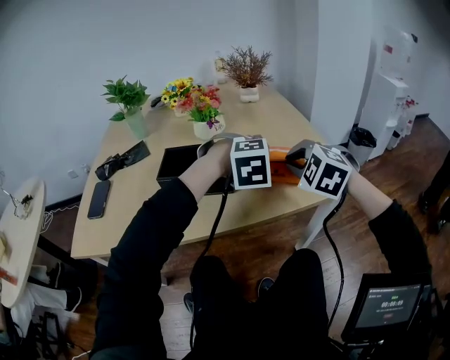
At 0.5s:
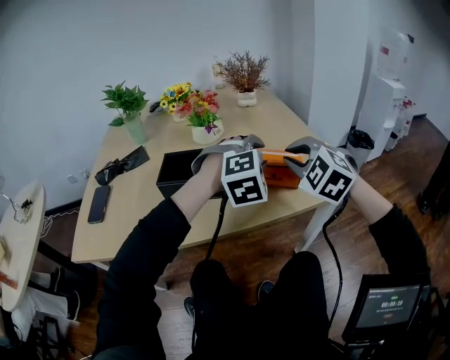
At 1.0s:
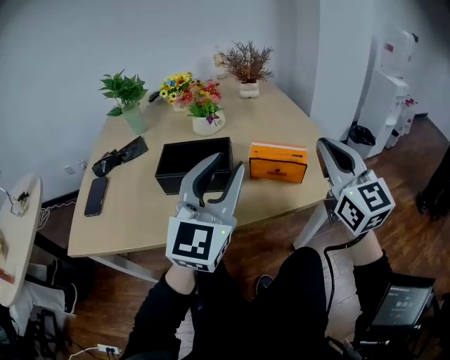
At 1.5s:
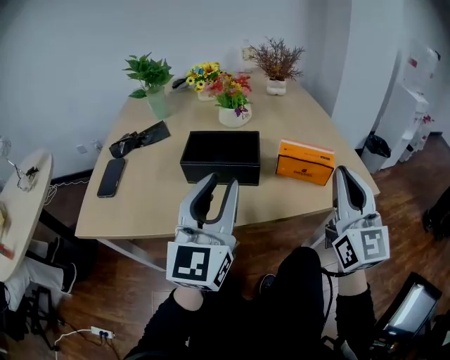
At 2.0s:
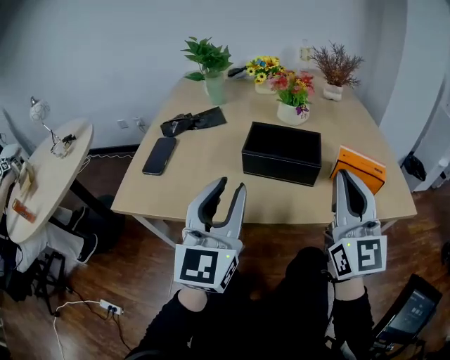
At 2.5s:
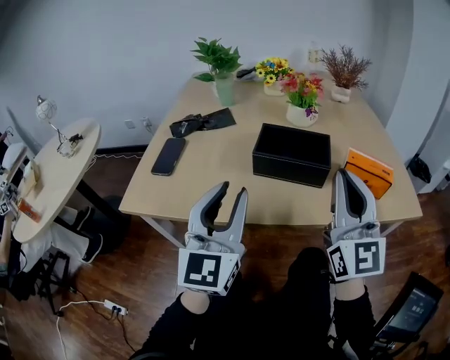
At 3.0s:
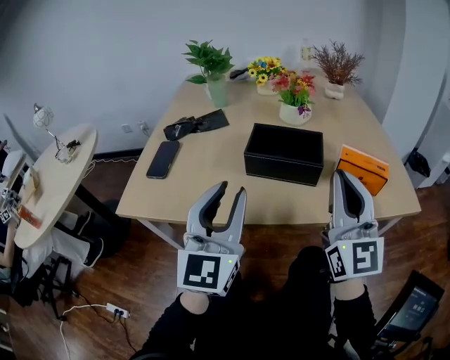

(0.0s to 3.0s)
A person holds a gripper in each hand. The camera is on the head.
0.0s - 1.5s: The right gripper moves backward and upward, about 15 cm, and tilts its fingers approximately 60 degrees upward; the left gripper goes approximately 25 cm to the left, backward and upward, and angles its fingers upward, by about 60 degrees.
1.5s - 3.0s: The grippers both shift to the left by about 15 cm.

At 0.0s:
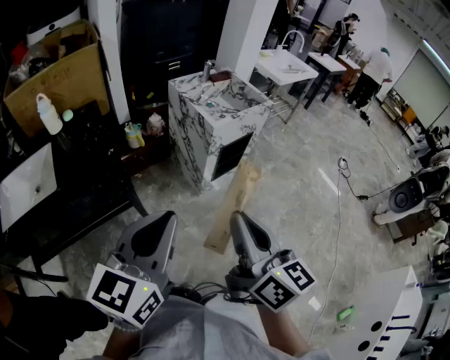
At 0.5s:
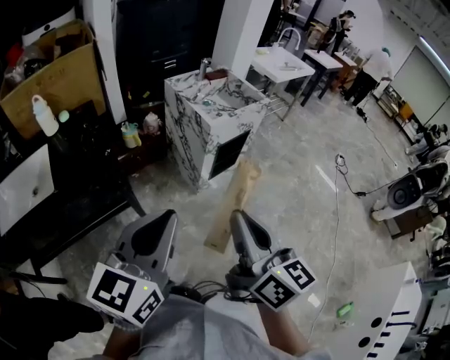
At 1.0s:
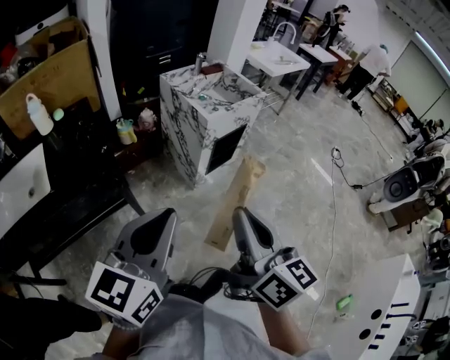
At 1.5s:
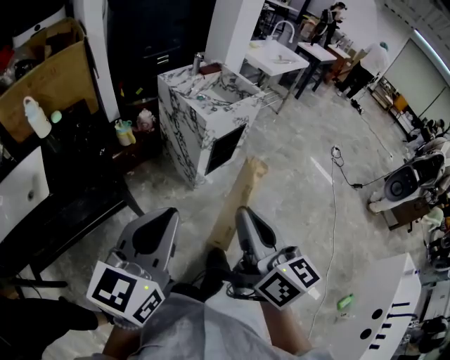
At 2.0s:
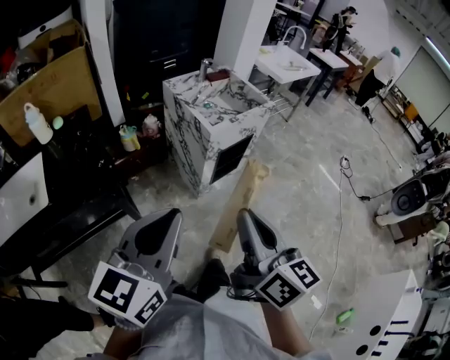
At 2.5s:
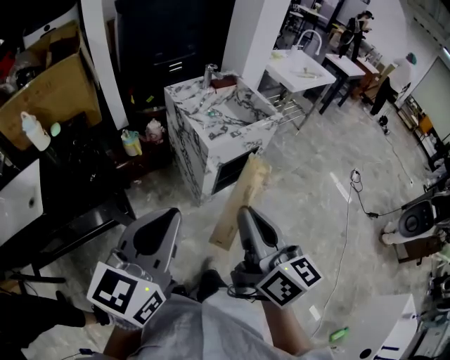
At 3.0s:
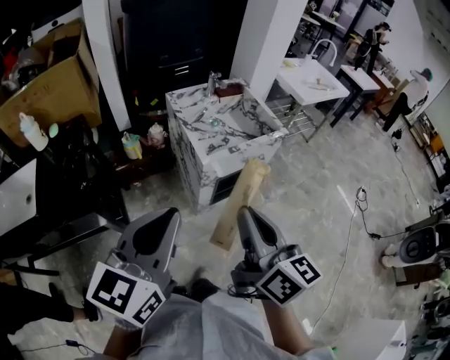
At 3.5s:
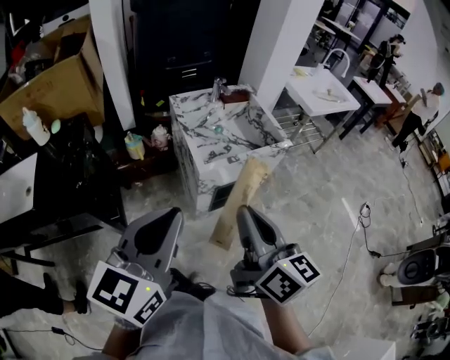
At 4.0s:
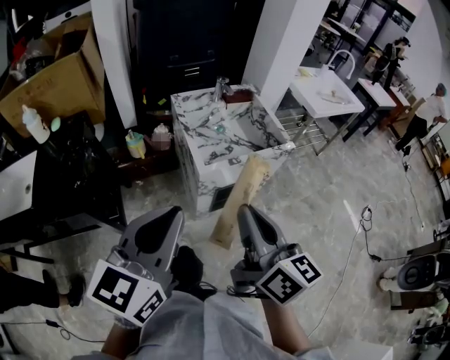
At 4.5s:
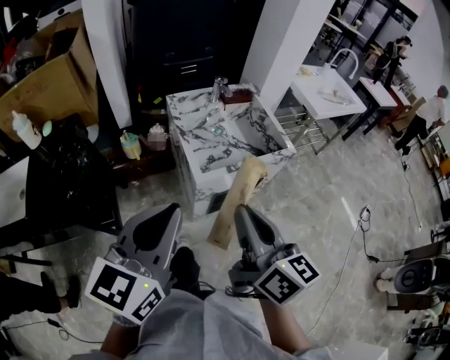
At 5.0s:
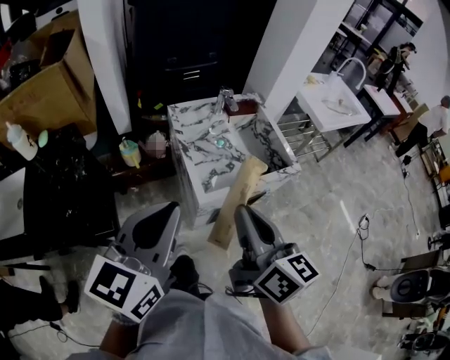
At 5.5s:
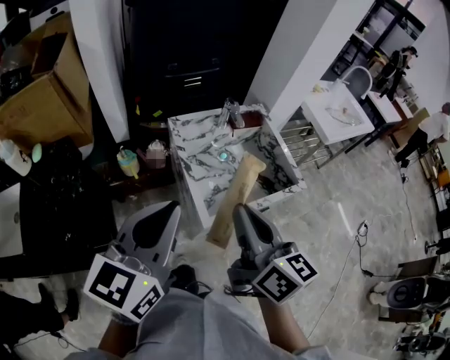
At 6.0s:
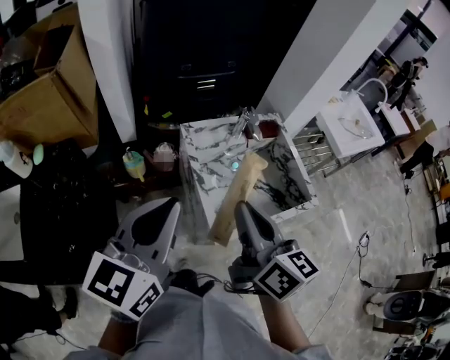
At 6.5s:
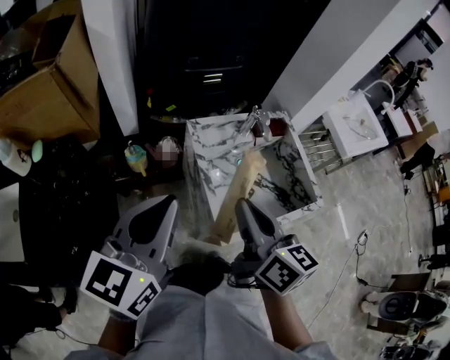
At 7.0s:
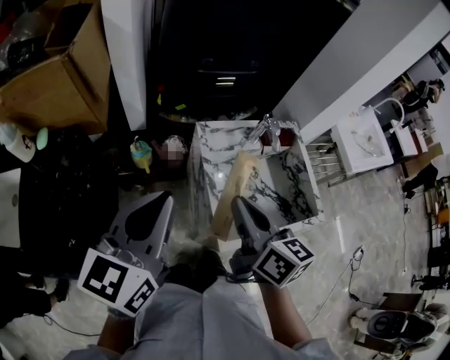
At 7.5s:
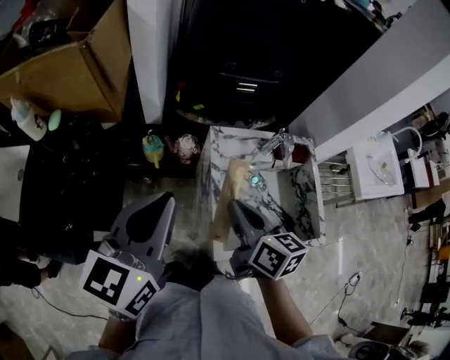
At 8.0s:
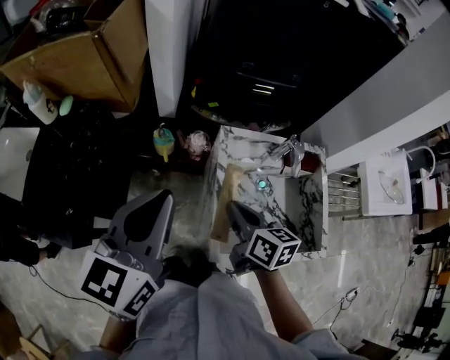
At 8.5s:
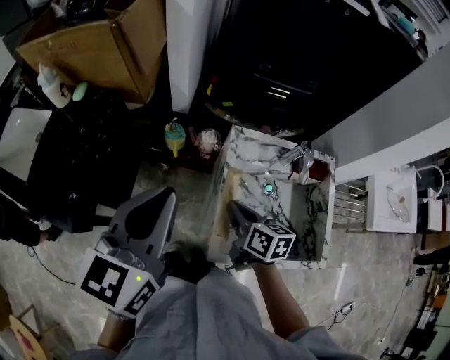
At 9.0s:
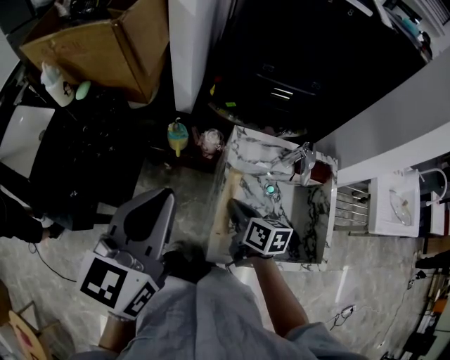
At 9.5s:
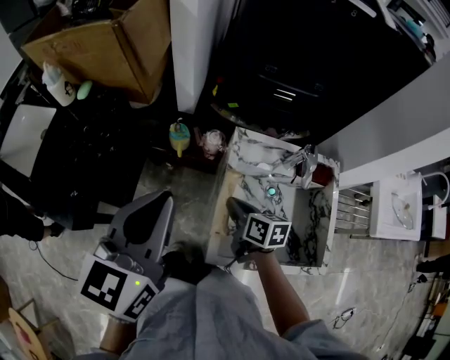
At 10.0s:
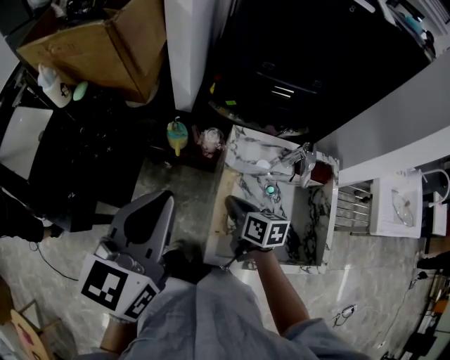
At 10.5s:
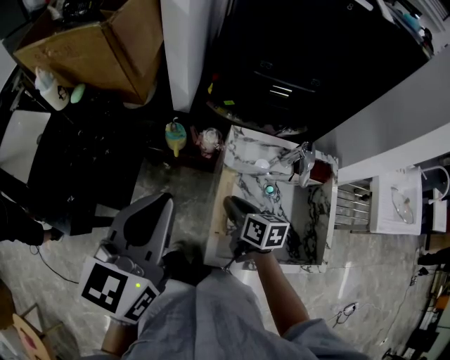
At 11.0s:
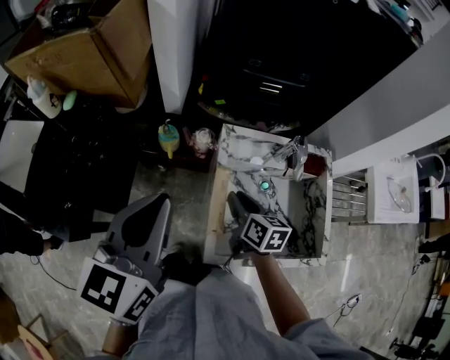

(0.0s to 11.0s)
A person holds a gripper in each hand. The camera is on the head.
0.0s - 2.0s: Both grippers move forward, approximately 10 cm.
2.0s - 3.5s: The two grippers go some 25 cm forward and to the right.
3.5s - 5.5s: Both grippers travel together forward, some 25 cm.
5.5s - 7.5s: The right gripper shifts some 20 cm forward, downward and to the left, and swivels roughly 30 degrees, while the left gripper goes approximately 15 cm forward and to the left, and changes its angle by about 20 degrees.
7.5s - 9.0s: The right gripper goes some 15 cm downward.
9.0s - 11.0s: The right gripper opens its fingers.

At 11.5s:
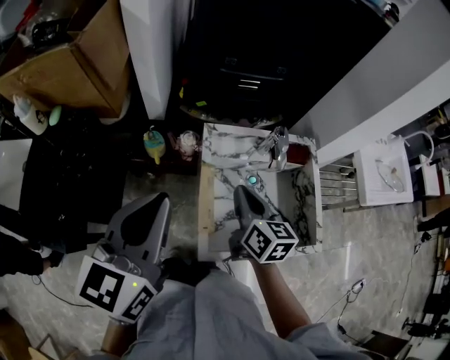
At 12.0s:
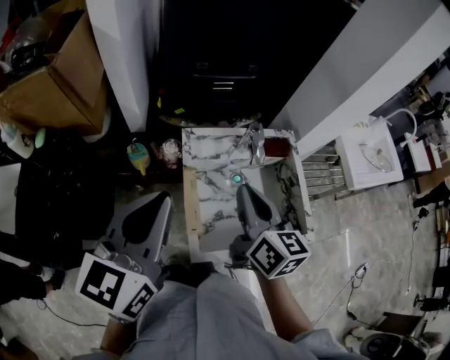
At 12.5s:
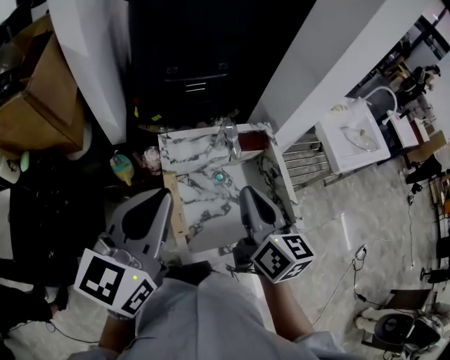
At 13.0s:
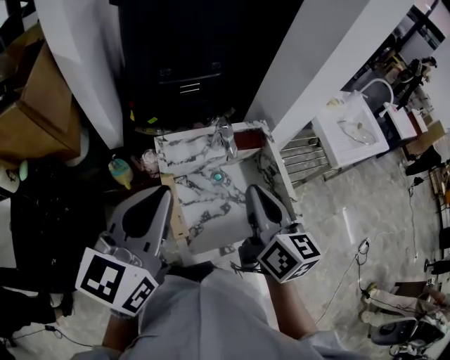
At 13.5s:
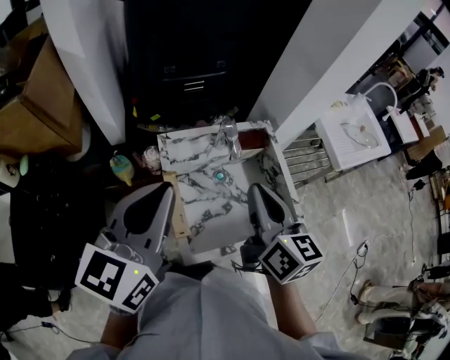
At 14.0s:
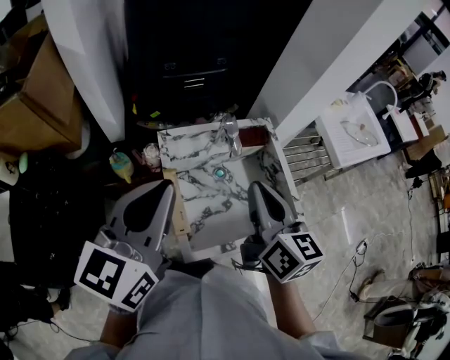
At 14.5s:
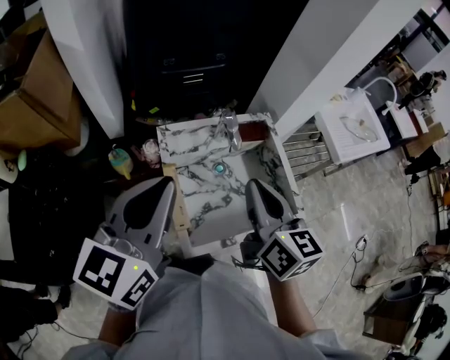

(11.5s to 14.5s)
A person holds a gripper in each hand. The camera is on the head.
11.5s - 13.0s: The left gripper moves to the right, about 10 cm. Meanwhile the right gripper goes roughly 15 cm upward and to the right.
13.0s - 14.5s: The grippers make only small movements.

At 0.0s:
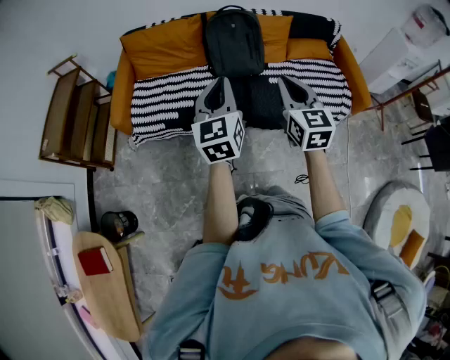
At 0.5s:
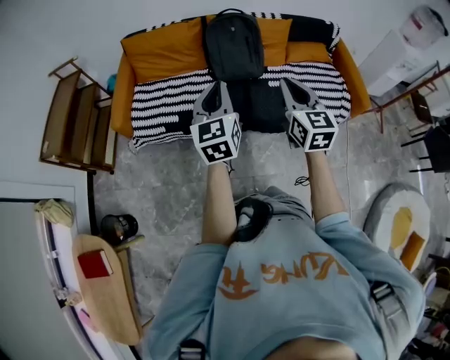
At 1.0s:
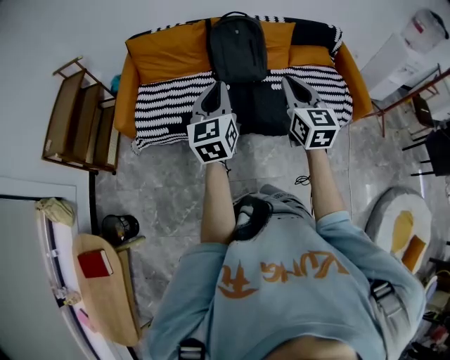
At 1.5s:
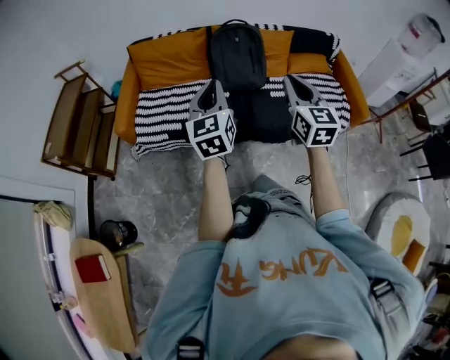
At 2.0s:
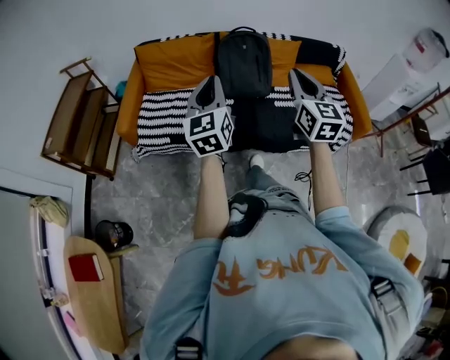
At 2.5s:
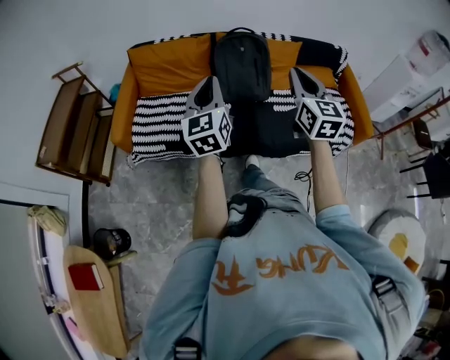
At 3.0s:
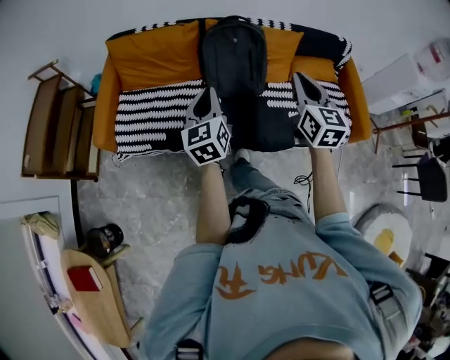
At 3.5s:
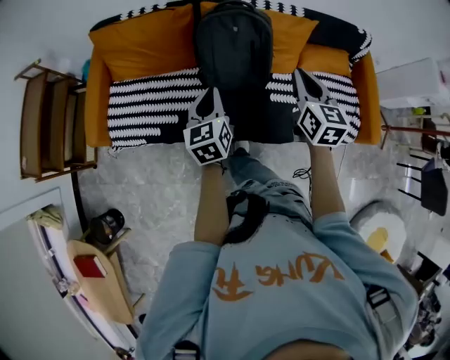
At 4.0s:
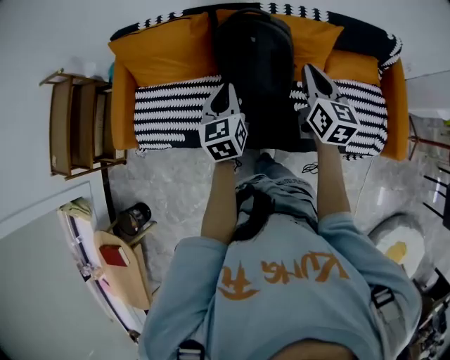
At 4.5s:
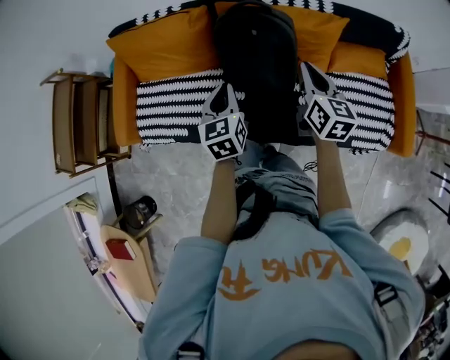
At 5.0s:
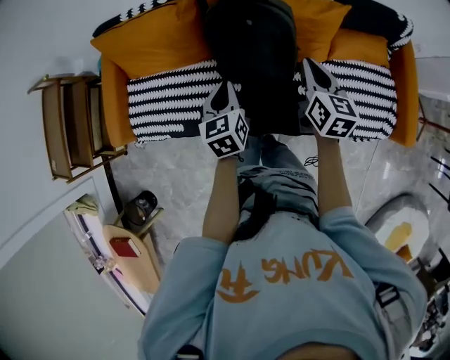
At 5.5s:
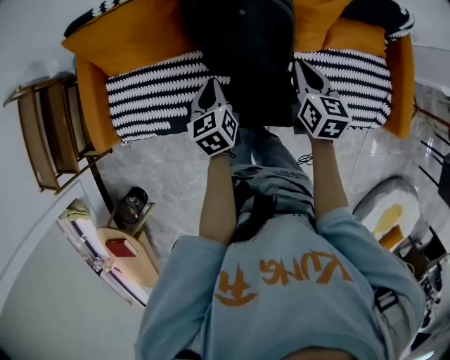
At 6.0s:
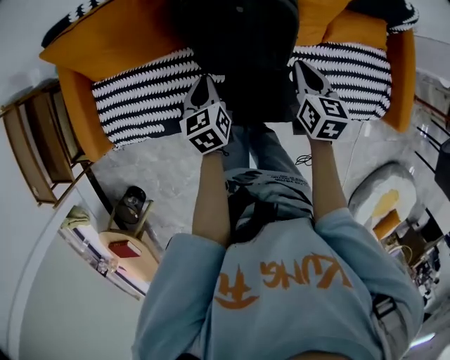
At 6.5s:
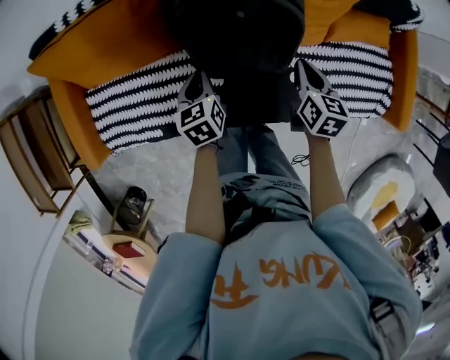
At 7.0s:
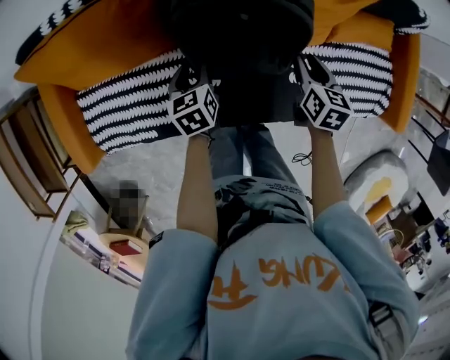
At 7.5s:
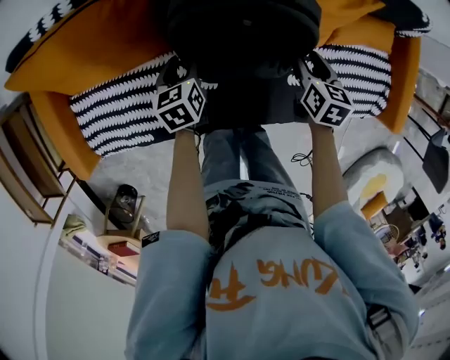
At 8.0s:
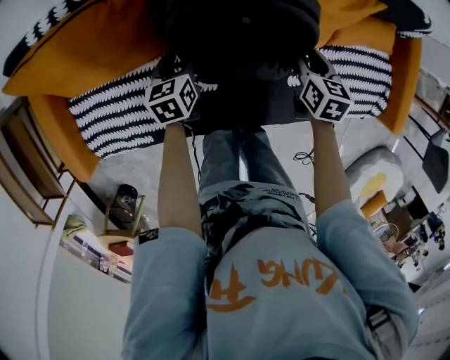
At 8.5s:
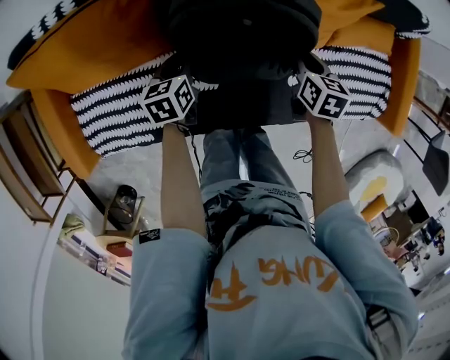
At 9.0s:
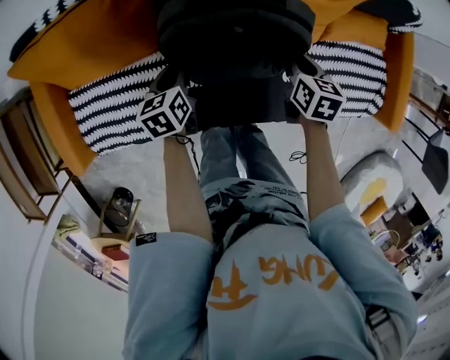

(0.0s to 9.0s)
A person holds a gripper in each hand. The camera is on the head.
0.0s - 2.0s: The right gripper goes about 5 cm upward, while the left gripper shifts about 5 cm to the left.
2.0s - 4.5s: Both grippers are carried forward, some 40 cm. The grippers both shift downward by roughly 20 cm. The right gripper turns by approximately 30 degrees, while the left gripper angles its fingers downward, by some 30 degrees.
4.5s - 7.0s: The right gripper is displaced downward by about 25 cm, swivels some 30 degrees, and opens its fingers. The left gripper shifts roughly 30 cm downward and forward, changes its angle by some 30 degrees, and opens its fingers.
7.0s - 9.0s: The right gripper closes up. Meanwhile the left gripper goes forward and returns, approximately 5 cm each way.
